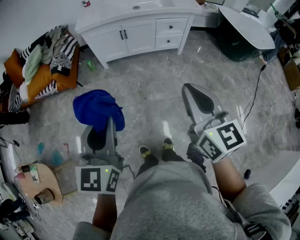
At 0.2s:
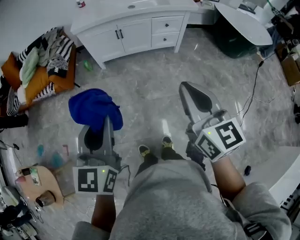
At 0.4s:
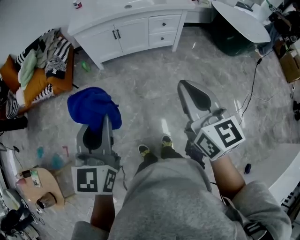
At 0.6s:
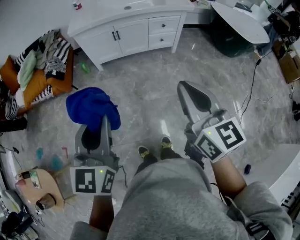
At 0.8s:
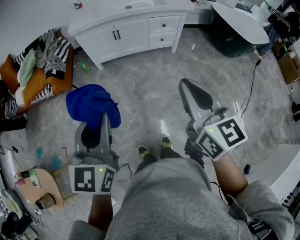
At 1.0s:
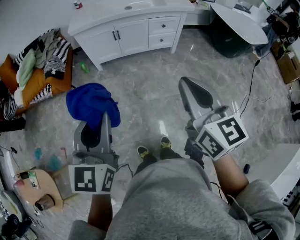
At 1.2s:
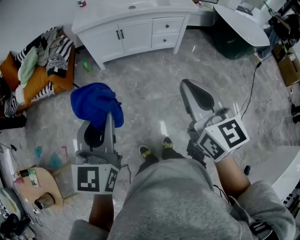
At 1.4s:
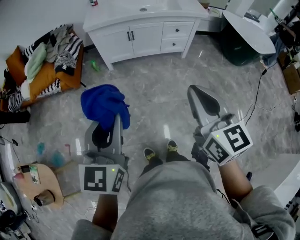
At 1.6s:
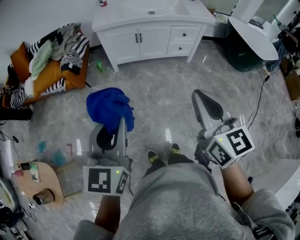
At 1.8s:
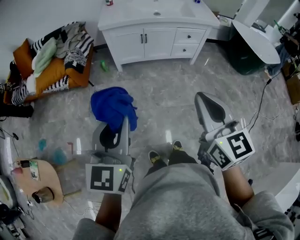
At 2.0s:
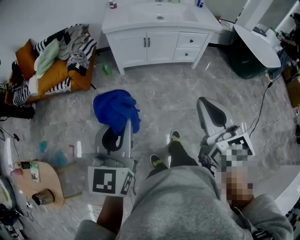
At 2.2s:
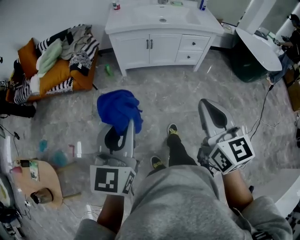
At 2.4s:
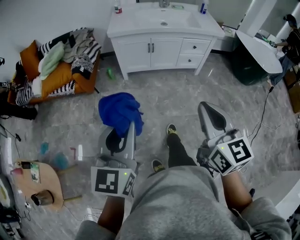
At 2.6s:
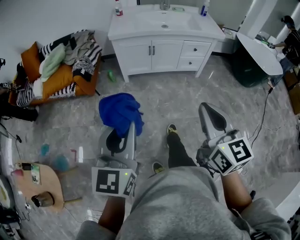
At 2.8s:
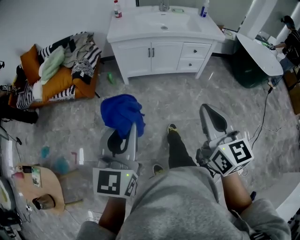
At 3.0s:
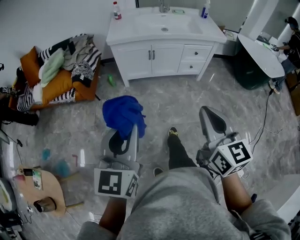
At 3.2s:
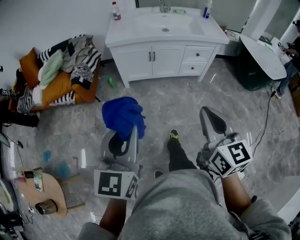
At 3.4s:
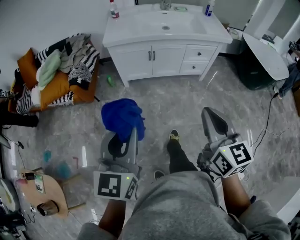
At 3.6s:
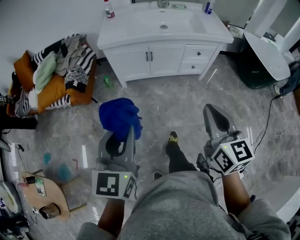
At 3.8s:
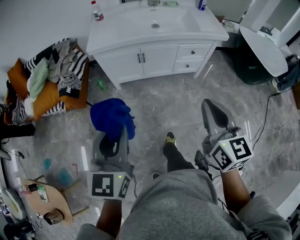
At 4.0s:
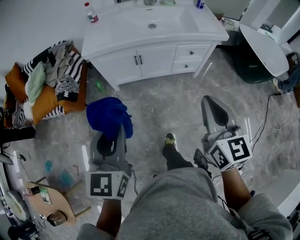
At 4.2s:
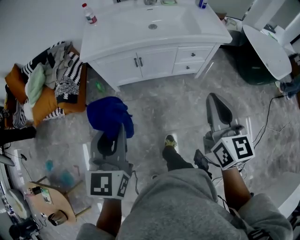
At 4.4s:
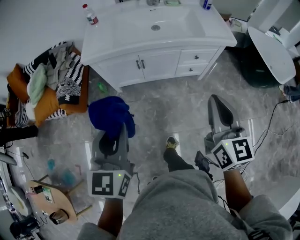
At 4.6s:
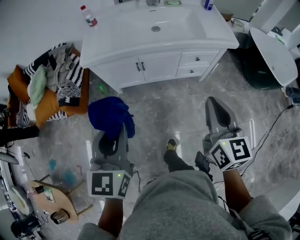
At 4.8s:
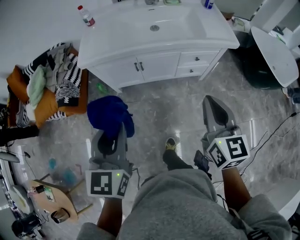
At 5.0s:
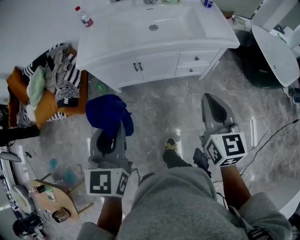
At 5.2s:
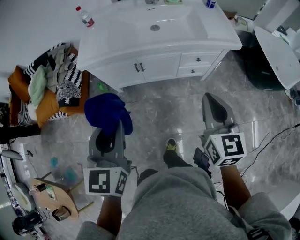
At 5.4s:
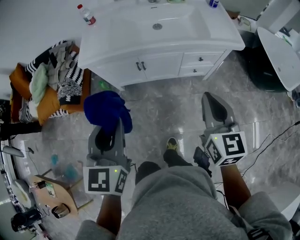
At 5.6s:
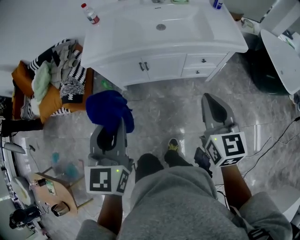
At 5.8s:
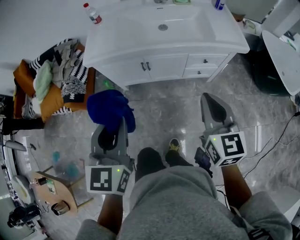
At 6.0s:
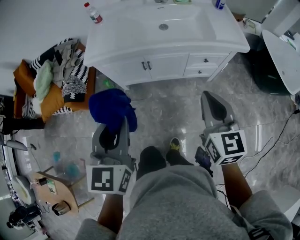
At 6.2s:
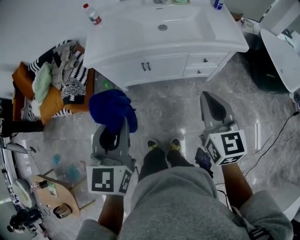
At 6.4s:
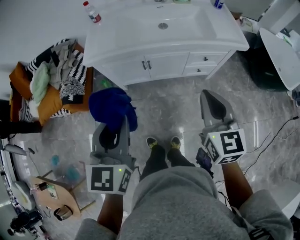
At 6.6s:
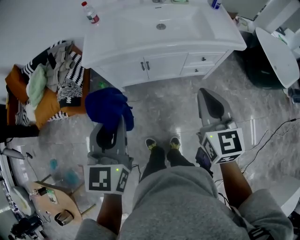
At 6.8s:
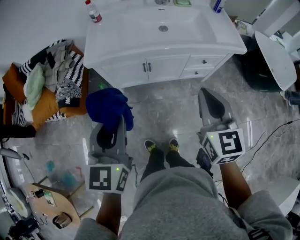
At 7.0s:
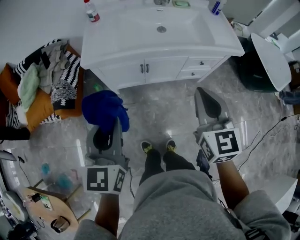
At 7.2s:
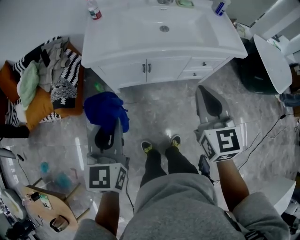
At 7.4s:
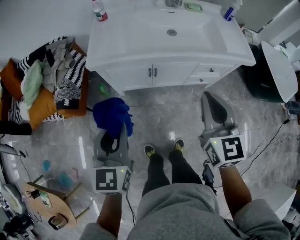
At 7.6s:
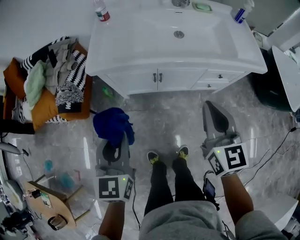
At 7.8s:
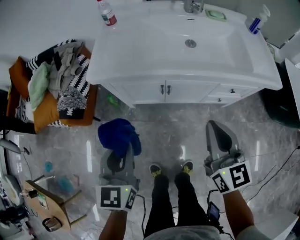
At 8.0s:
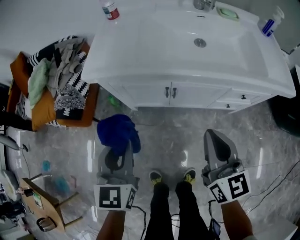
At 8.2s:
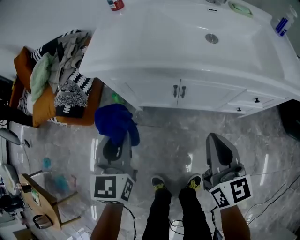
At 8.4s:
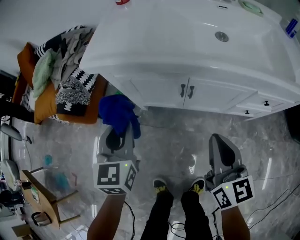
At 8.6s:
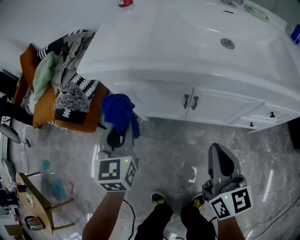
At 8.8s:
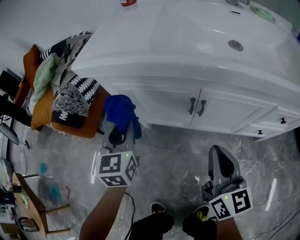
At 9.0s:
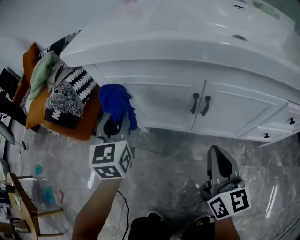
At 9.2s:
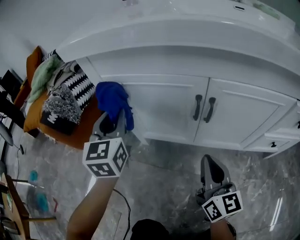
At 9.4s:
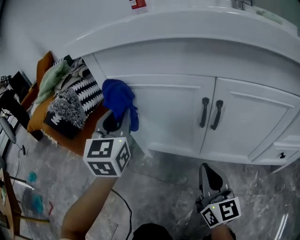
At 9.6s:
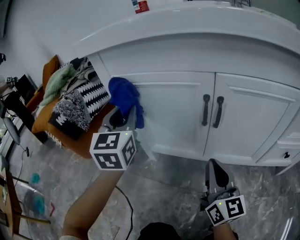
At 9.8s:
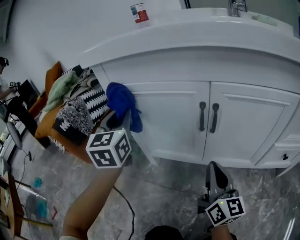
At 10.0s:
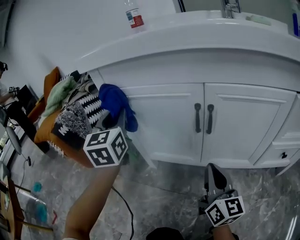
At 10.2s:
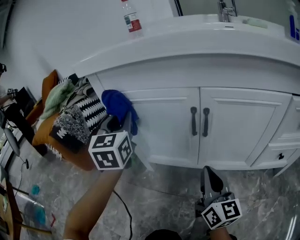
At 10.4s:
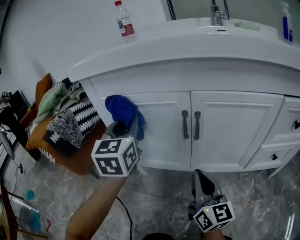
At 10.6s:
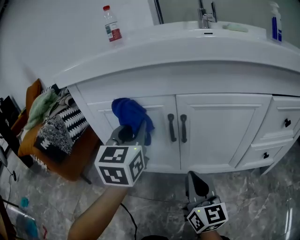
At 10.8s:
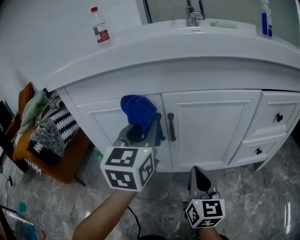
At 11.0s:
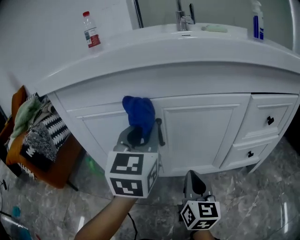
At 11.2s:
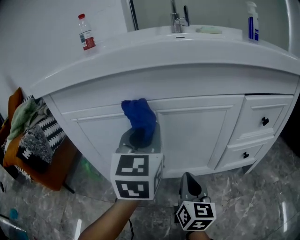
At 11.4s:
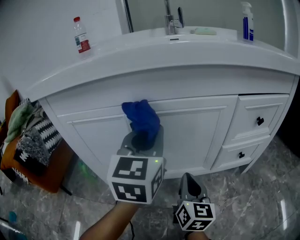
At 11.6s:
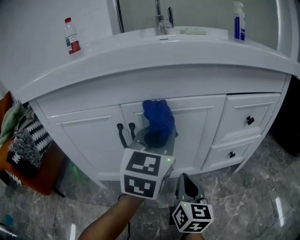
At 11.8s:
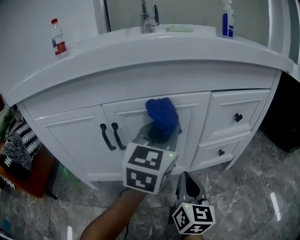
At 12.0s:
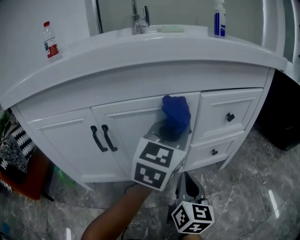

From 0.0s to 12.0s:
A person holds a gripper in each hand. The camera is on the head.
From 0.0s to 1.6s: Both grippers move to the left, about 10 cm.
From 1.6s to 3.0s: The left gripper shifts by about 5 cm. Meanwhile the right gripper shifts by approximately 5 cm.
From 3.0s to 4.4s: The left gripper shifts roughly 30 cm forward, while the right gripper goes some 35 cm forward and to the right.
From 4.4s to 6.0s: Both grippers move forward, approximately 10 cm.
From 6.0s to 7.6s: The left gripper is displaced to the left, downward and forward by roughly 20 cm. The right gripper moves to the left, forward and downward, about 15 cm.
From 7.6s to 9.0s: The left gripper travels downward and forward by roughly 40 cm. The right gripper moves downward, approximately 40 cm, and turns by about 20 degrees.
From 9.0s to 10.4s: The left gripper moves to the right, some 5 cm. The right gripper shifts approximately 10 cm downward.
From 10.4s to 12.0s: The right gripper moves about 20 cm, and swivels about 40 degrees. Meanwhile the left gripper moves some 40 cm, and swivels approximately 50 degrees.

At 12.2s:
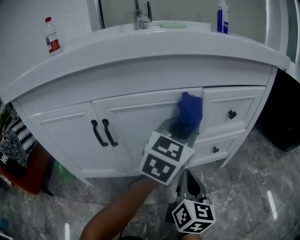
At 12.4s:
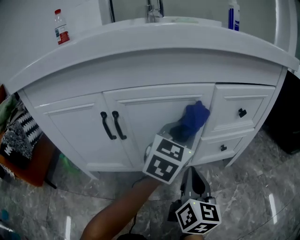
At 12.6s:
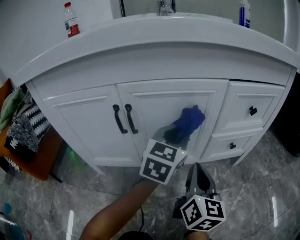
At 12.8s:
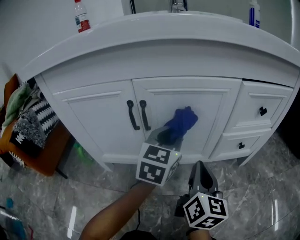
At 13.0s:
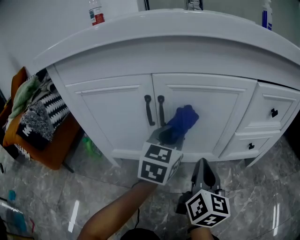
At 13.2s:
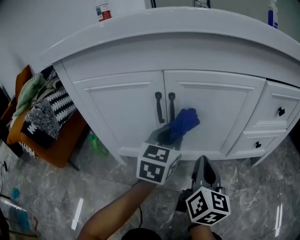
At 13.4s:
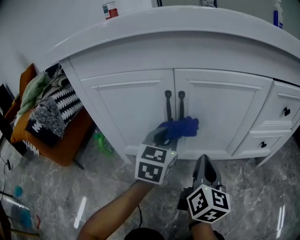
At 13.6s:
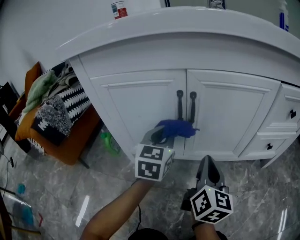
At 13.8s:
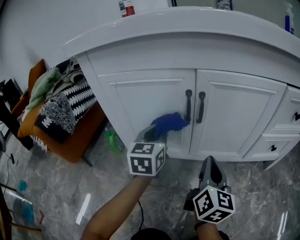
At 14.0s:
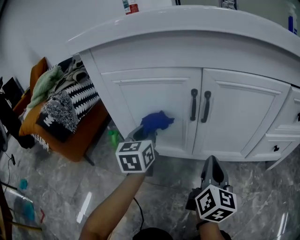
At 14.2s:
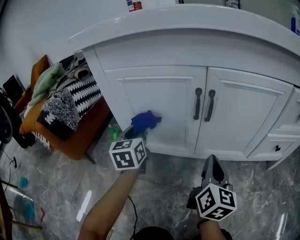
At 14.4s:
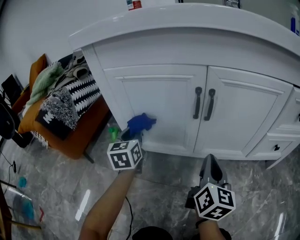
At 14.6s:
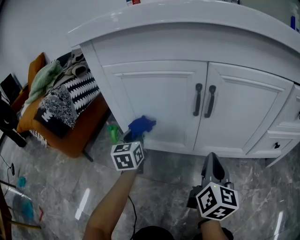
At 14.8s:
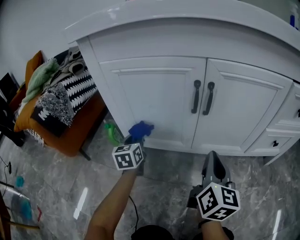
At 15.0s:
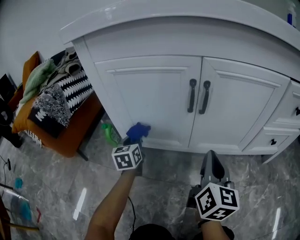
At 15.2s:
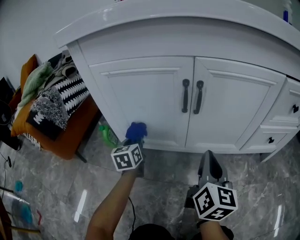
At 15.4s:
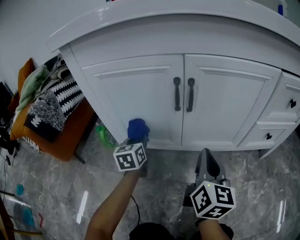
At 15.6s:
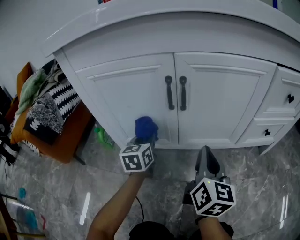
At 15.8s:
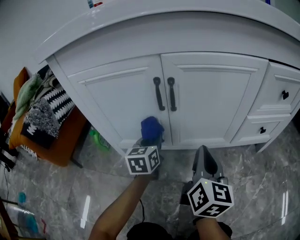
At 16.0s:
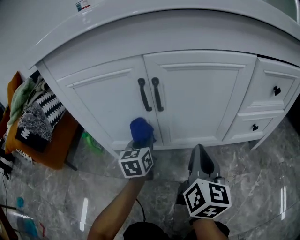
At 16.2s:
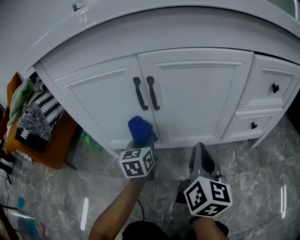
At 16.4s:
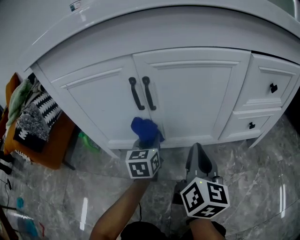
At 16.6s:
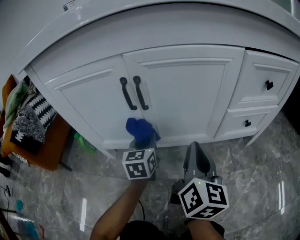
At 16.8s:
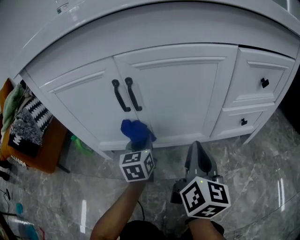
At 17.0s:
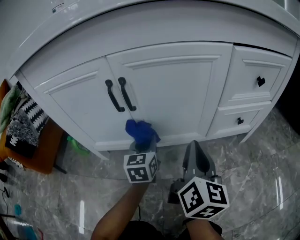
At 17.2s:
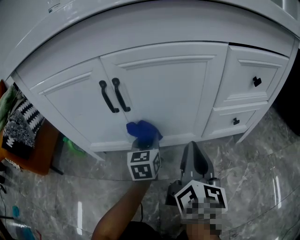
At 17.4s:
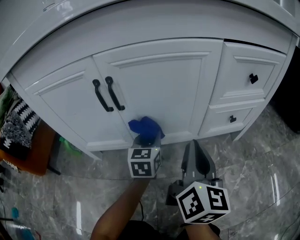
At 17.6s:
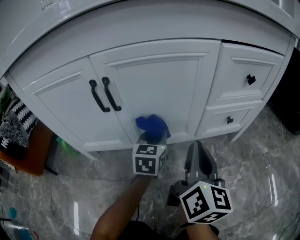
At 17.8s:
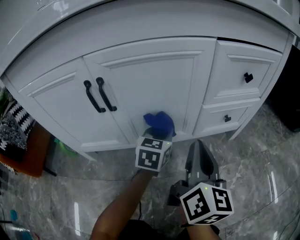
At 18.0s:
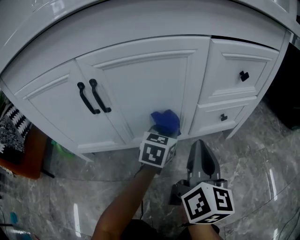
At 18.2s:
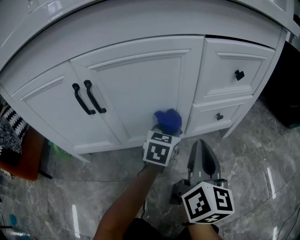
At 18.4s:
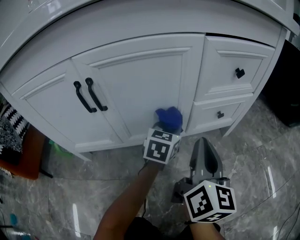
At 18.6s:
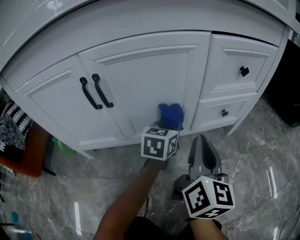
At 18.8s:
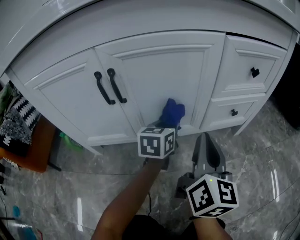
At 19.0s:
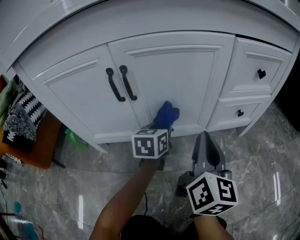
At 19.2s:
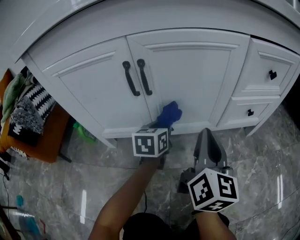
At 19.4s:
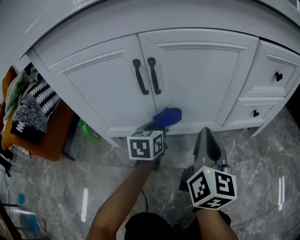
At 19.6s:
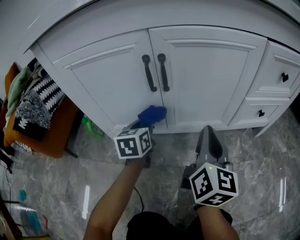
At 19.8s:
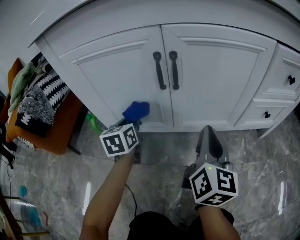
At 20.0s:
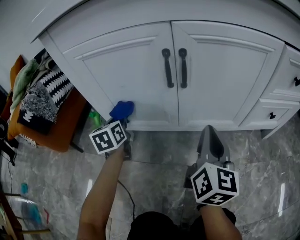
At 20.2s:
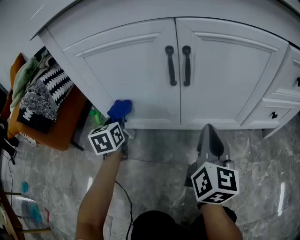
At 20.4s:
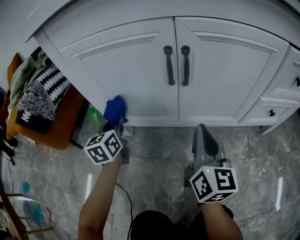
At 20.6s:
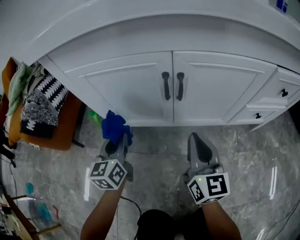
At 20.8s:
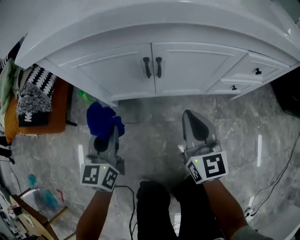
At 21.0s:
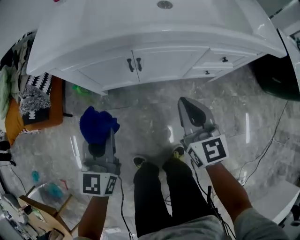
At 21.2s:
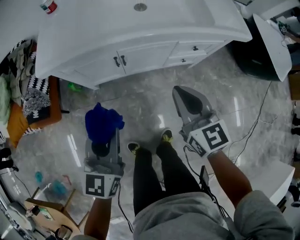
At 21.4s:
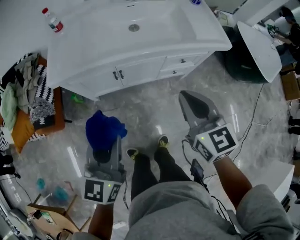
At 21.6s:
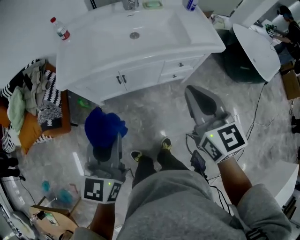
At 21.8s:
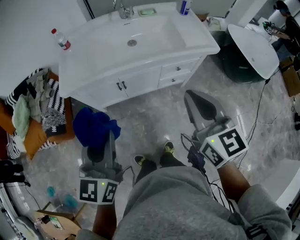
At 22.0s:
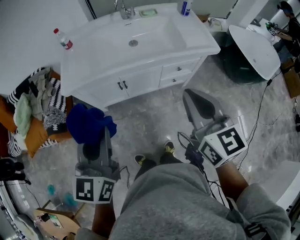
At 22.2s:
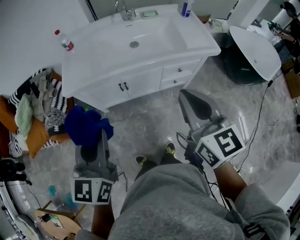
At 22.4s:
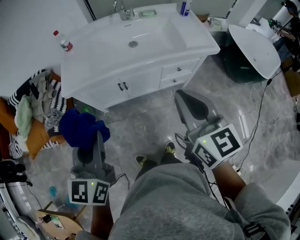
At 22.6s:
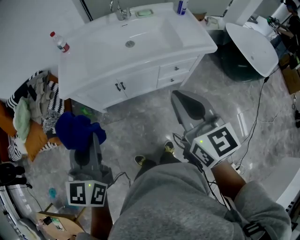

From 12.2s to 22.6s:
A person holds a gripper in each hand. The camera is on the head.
From 12.2s to 13.6s: The left gripper moves to the left, roughly 30 cm, and swivels some 40 degrees; the right gripper heads to the left, covering about 15 cm.
From 13.6s to 15.2s: The left gripper shifts approximately 20 cm to the left and downward, and swivels approximately 30 degrees.
From 15.2s to 16.6s: The right gripper heads to the right, covering approximately 10 cm, while the left gripper travels to the right by some 20 cm.
From 16.6s to 18.2s: The left gripper shifts about 25 cm to the right, and swivels some 30 degrees. The right gripper is displaced to the right by about 10 cm.
From 18.2s to 19.6s: The left gripper is displaced to the left by about 30 cm, and changes its angle by approximately 30 degrees; the right gripper moves to the left, about 15 cm.
From 19.6s to 21.2s: The left gripper shifts roughly 60 cm upward and backward, and changes its angle by about 20 degrees. Meanwhile the right gripper is displaced upward by about 40 cm, and swivels approximately 30 degrees.
From 21.2s to 22.6s: Both grippers move upward, about 20 cm.

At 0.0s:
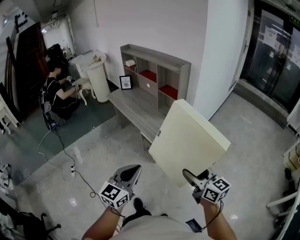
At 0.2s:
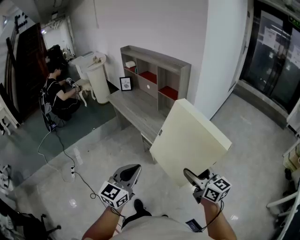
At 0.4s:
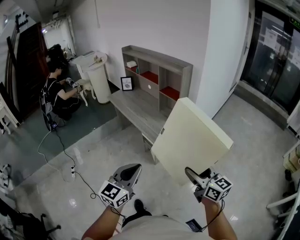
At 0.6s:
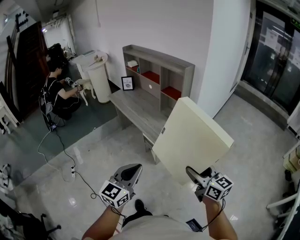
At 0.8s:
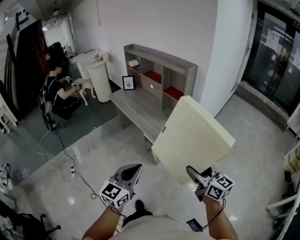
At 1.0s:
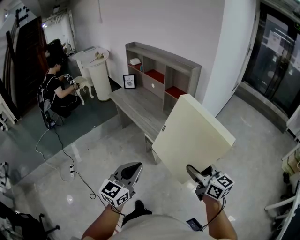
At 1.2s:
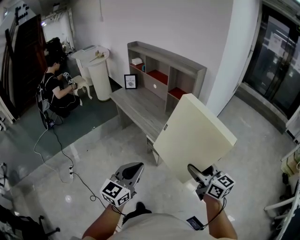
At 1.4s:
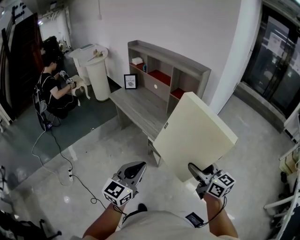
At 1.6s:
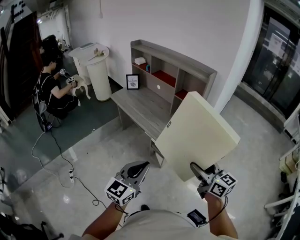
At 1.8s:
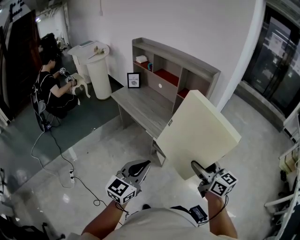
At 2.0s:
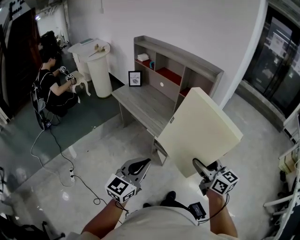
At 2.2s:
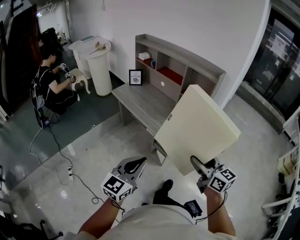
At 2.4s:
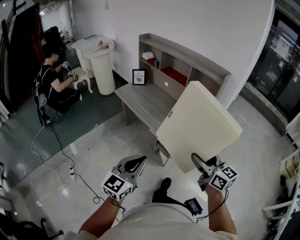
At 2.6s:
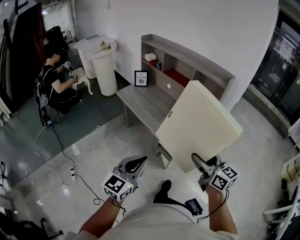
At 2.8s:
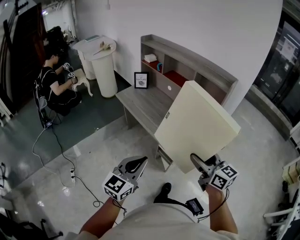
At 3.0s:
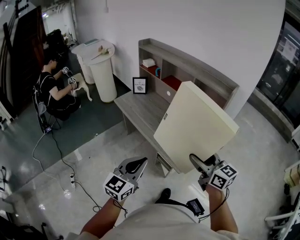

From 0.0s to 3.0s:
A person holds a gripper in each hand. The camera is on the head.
From 0.0s to 1.6s: Both grippers travel together to the left and forward, approximately 20 cm.
From 1.6s to 3.0s: The grippers both shift forward by some 20 cm.
